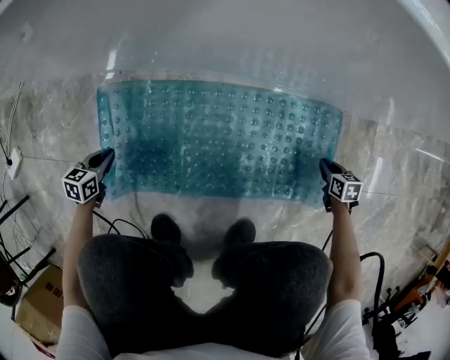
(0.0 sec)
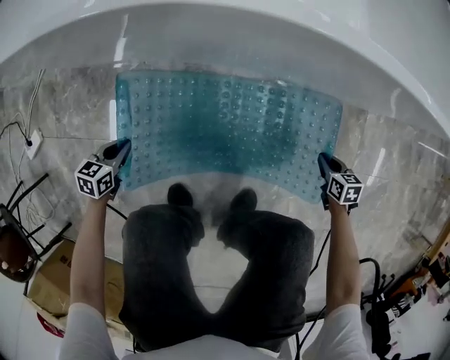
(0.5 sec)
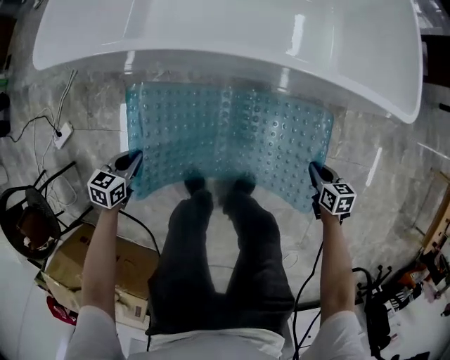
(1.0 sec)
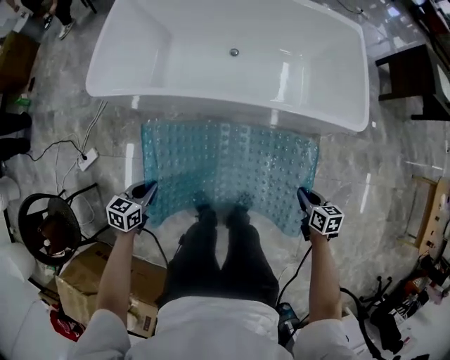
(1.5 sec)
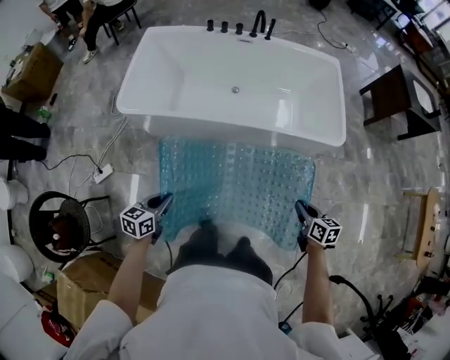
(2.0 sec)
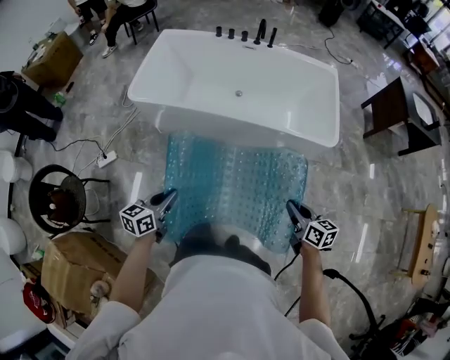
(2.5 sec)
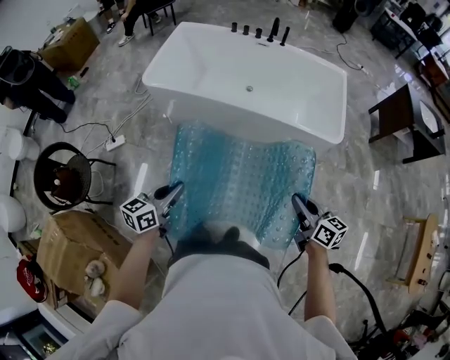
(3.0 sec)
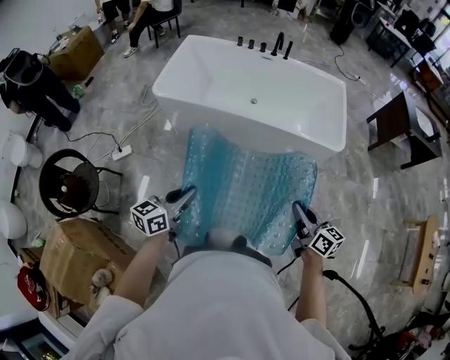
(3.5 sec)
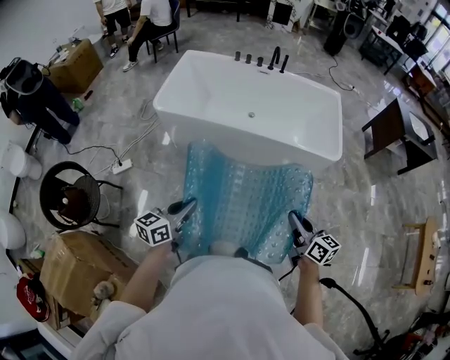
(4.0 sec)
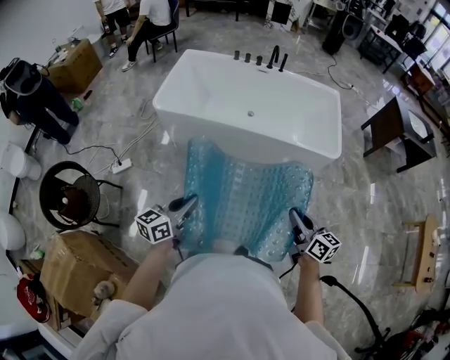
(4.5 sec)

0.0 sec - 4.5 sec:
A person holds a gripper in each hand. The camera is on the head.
0.0 sec - 2.0 sec: The two grippers go some 1 m upward. The right gripper rotates approximately 30 degrees.
2.0 sec - 4.5 sec: Both grippers travel together backward and upward, some 35 cm. The right gripper rotates roughly 30 degrees. The left gripper rotates approximately 20 degrees.

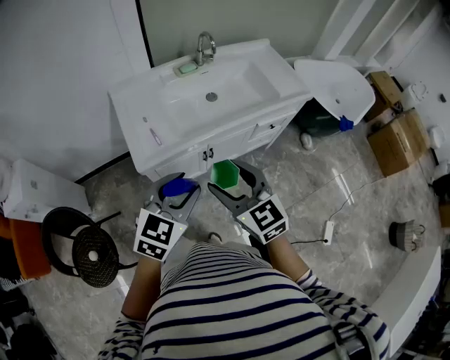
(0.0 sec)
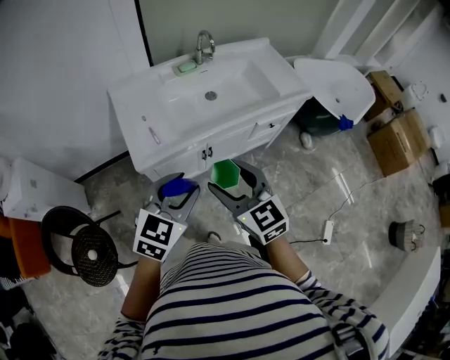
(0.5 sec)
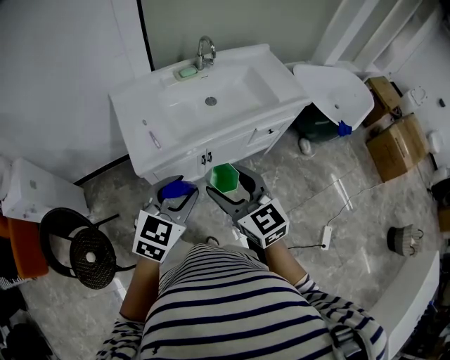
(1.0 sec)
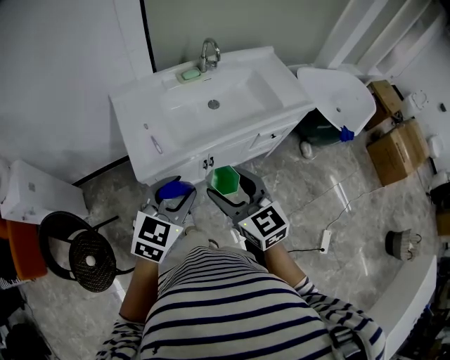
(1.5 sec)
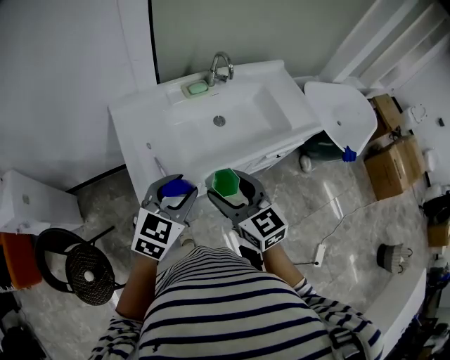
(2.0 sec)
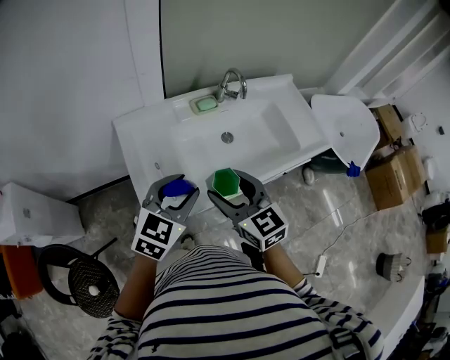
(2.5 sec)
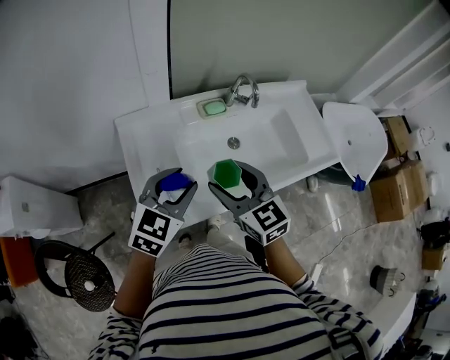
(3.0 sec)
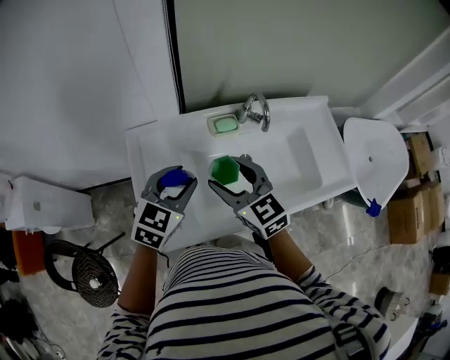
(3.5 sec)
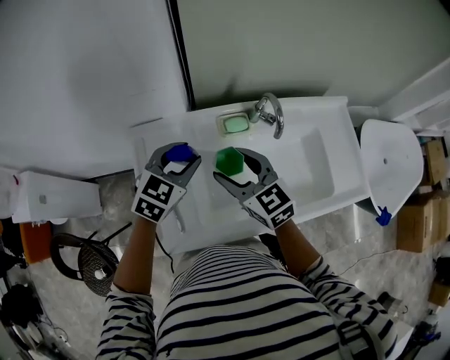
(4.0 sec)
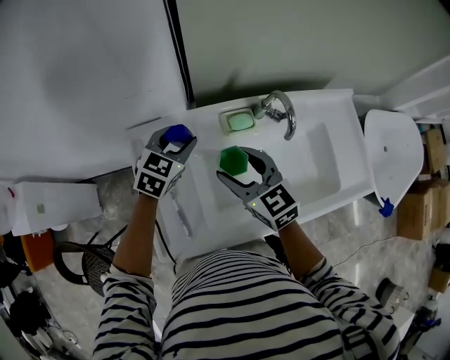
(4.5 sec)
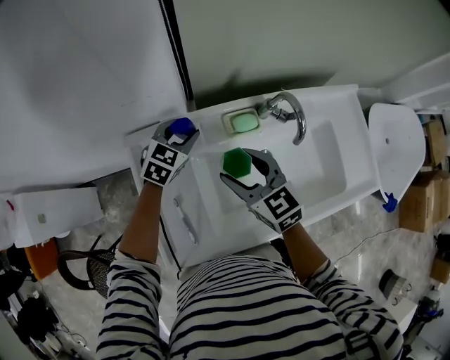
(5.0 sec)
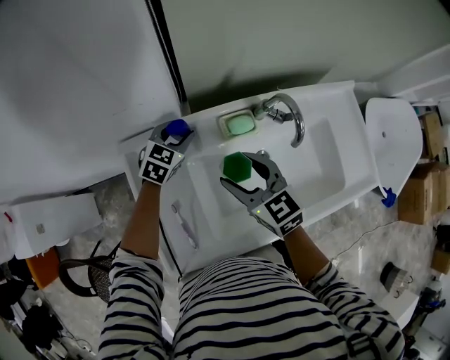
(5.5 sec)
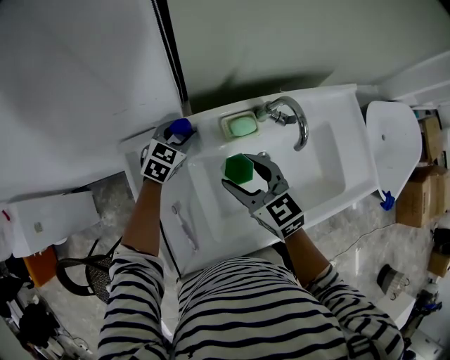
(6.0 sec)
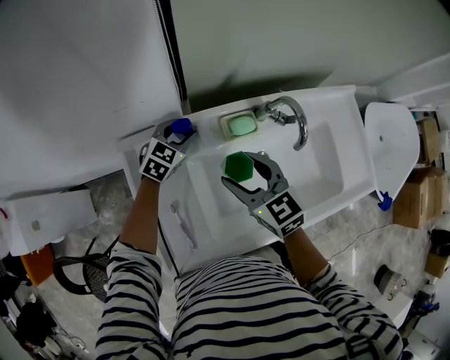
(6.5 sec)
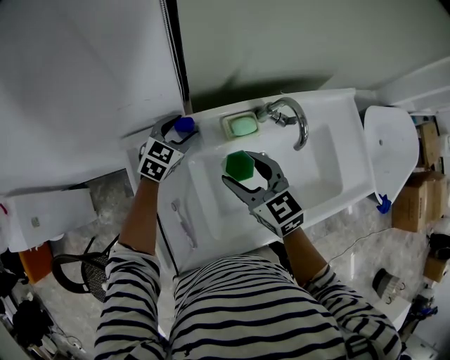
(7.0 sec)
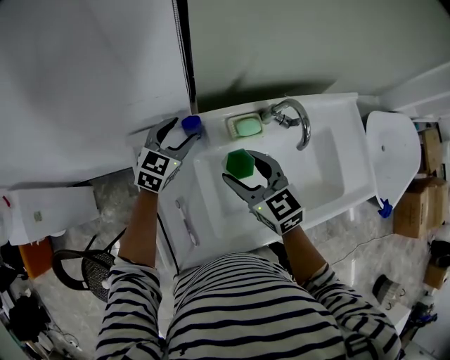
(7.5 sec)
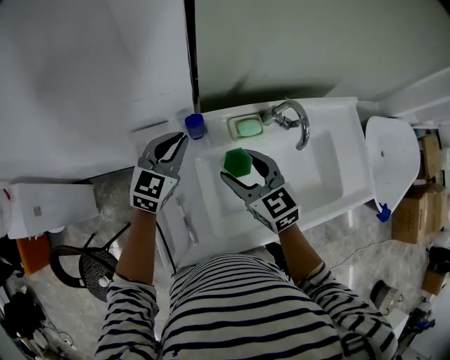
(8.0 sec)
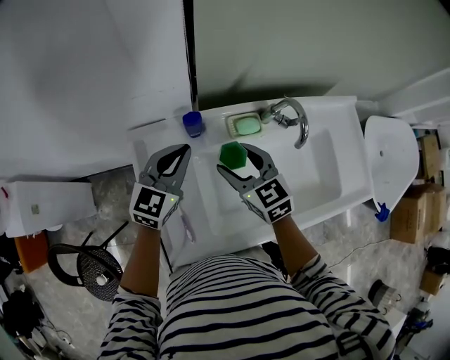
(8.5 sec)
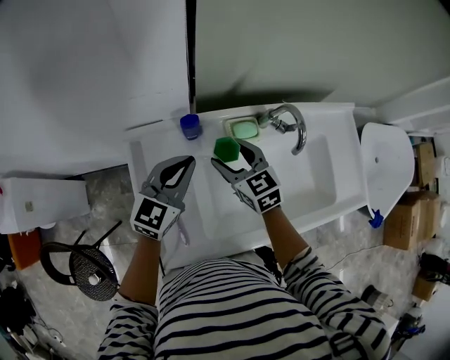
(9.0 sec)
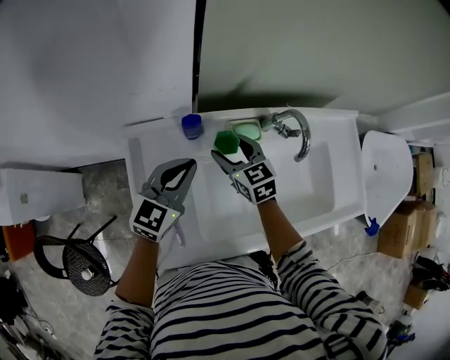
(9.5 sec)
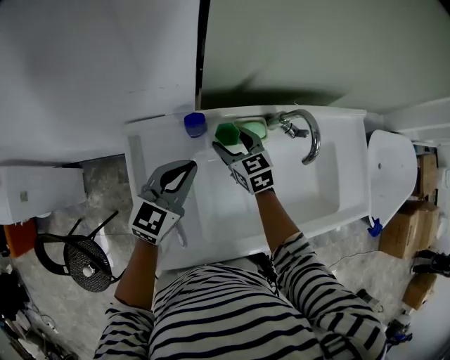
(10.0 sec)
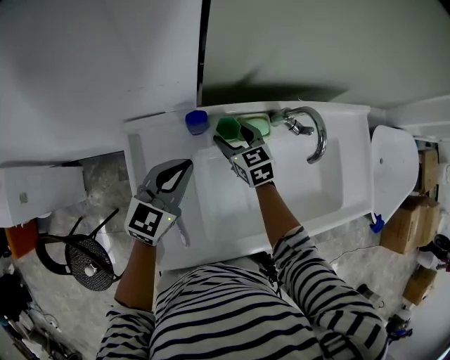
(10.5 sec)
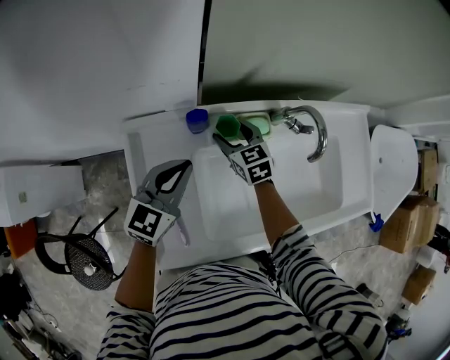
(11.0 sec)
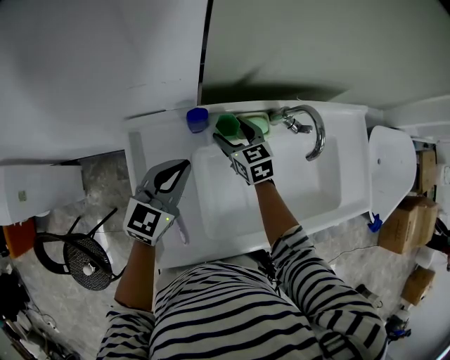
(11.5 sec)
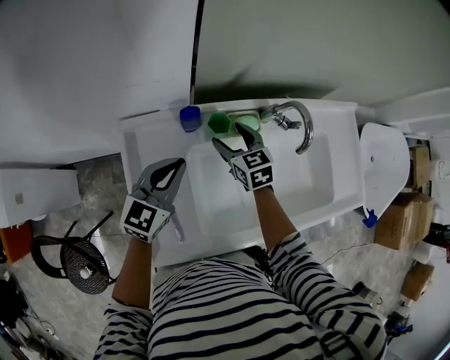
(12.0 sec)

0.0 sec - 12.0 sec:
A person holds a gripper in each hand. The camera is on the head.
0.0 sec - 2.0 sec: Both grippers travel together forward, some 15 cm.
2.0 sec - 4.0 sec: Both grippers move forward, some 35 cm.
4.0 sec - 6.0 sec: The right gripper shifts about 10 cm downward and forward. Meanwhile the left gripper heads downward and forward, covering some 25 cm.
6.0 sec - 8.0 sec: The left gripper shifts about 15 cm upward and backward, and closes its fingers.
8.0 sec - 10.0 sec: The right gripper travels downward and forward by some 15 cm. Meanwhile the left gripper heads backward, covering some 5 cm.
10.0 sec - 12.0 sec: The grippers stay close to where they were, moving slightly.

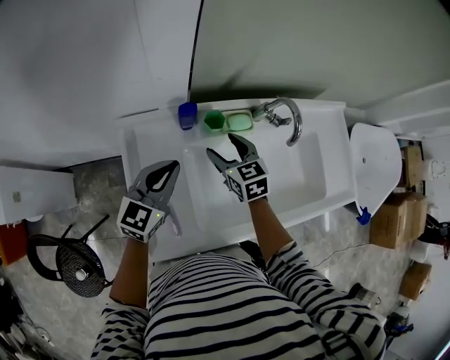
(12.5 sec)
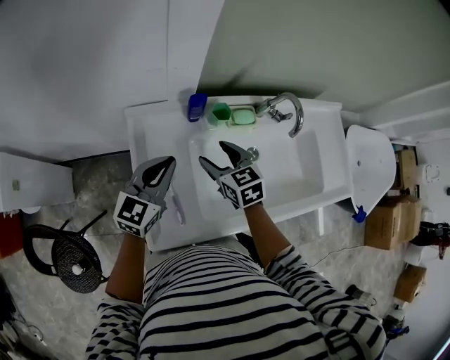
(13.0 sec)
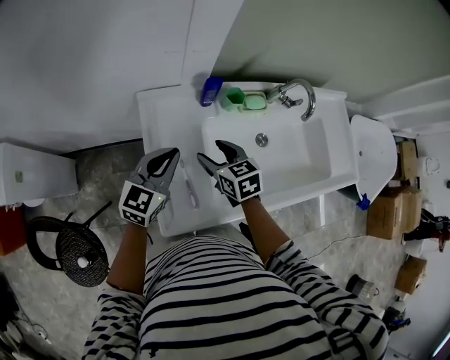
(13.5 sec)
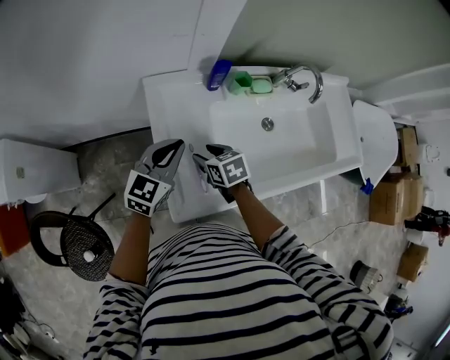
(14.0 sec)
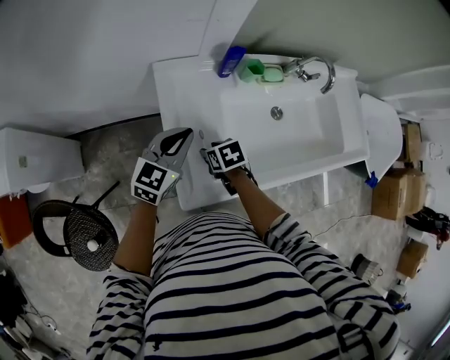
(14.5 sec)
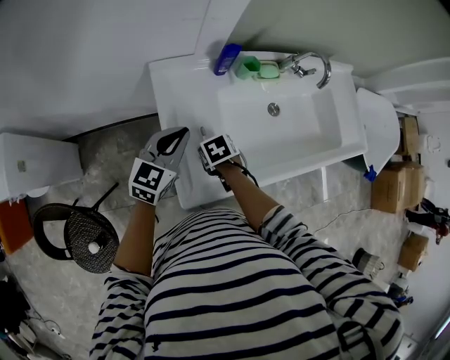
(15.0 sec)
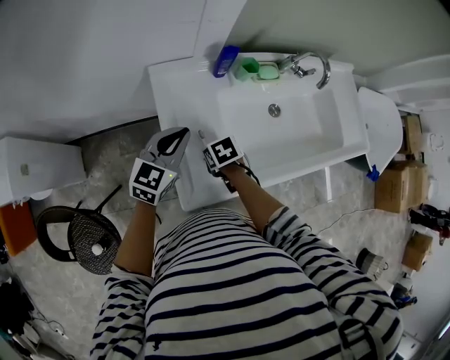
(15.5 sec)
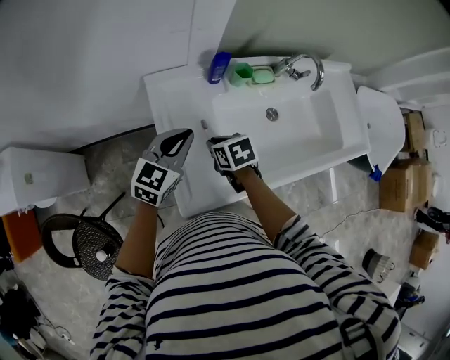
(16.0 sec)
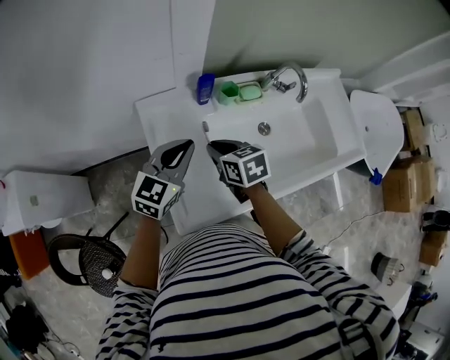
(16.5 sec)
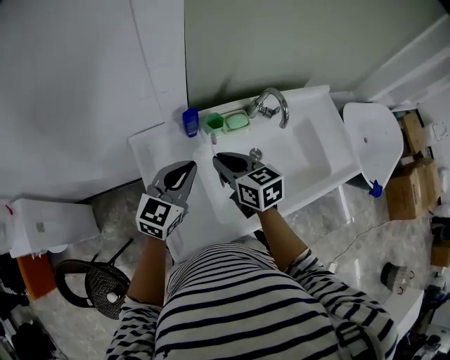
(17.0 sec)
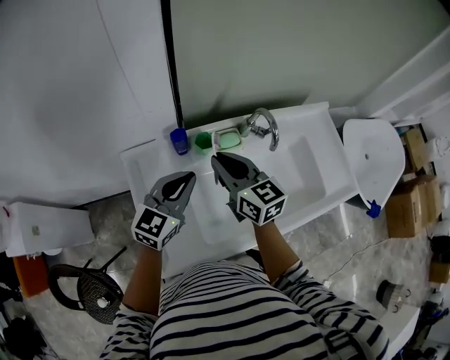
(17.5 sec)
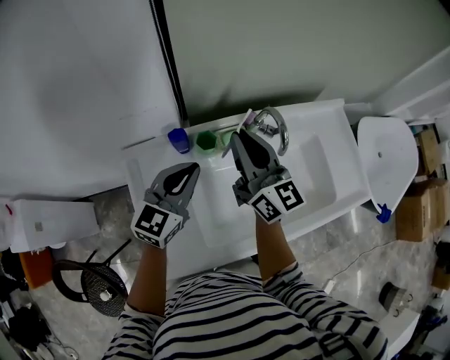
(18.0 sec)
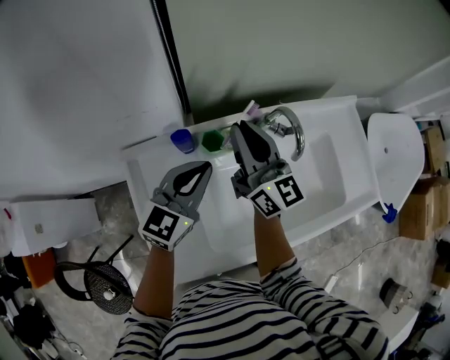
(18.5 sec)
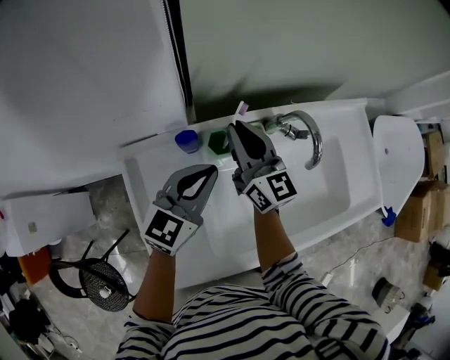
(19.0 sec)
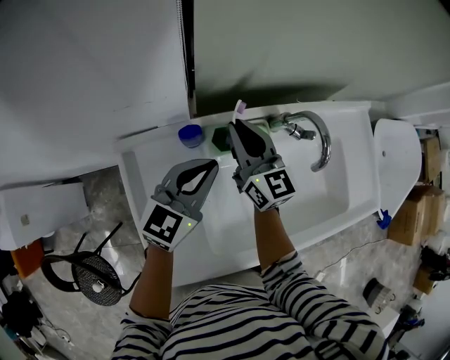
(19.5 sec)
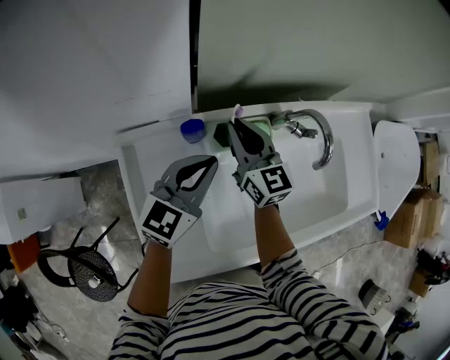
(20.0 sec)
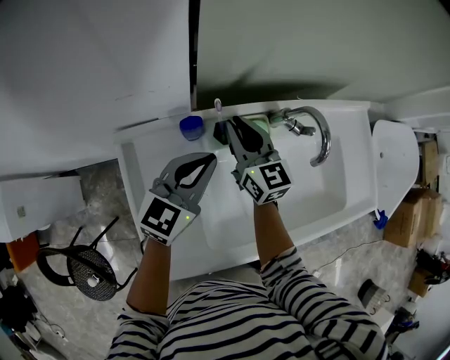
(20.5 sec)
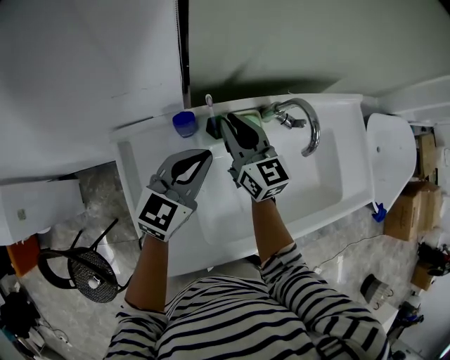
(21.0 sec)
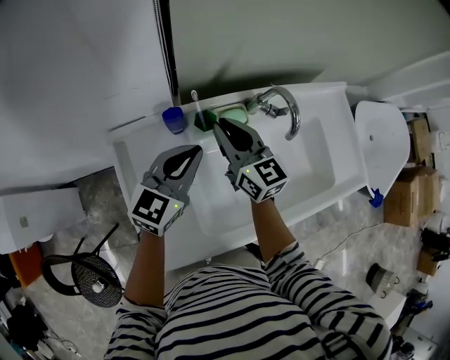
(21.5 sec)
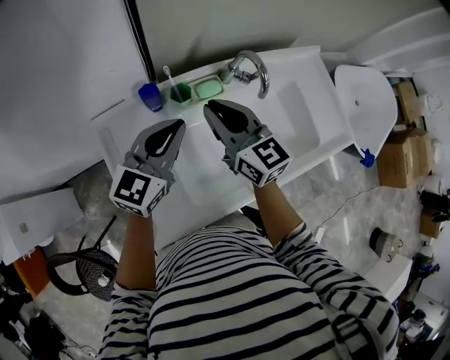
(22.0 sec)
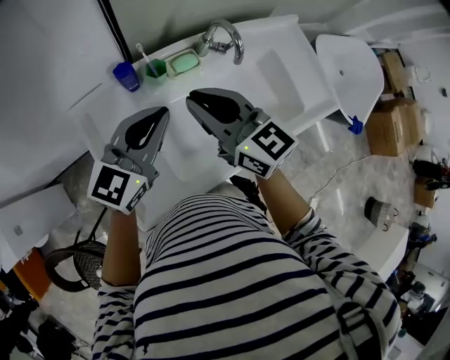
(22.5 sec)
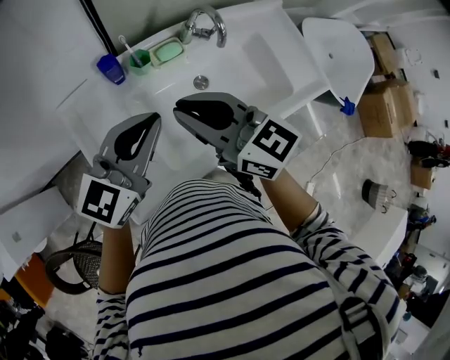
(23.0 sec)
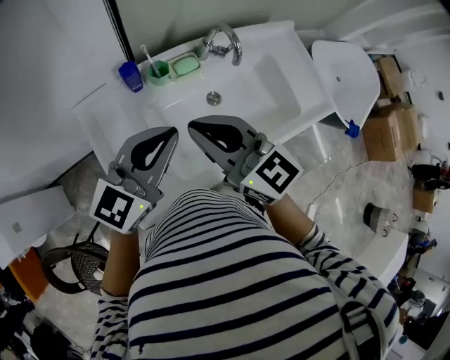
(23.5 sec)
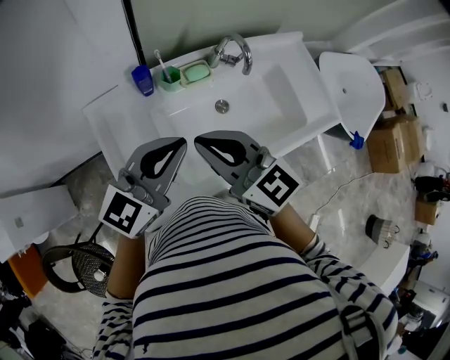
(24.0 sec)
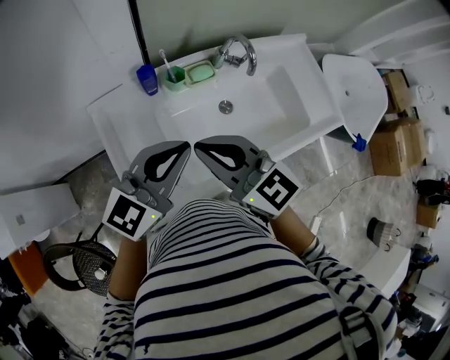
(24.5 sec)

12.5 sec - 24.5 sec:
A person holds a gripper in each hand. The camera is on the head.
12.5 sec - 14.5 sec: The left gripper heads to the left and backward, covering approximately 15 cm. Meanwhile the right gripper goes approximately 25 cm backward, to the left and downward, tilts its fingers roughly 30 degrees downward, and closes up.
14.5 sec - 16.5 sec: The left gripper ends up some 10 cm from where it was; the right gripper heads upward, covering roughly 15 cm, swivels roughly 20 degrees, and closes its fingers.
16.5 sec - 18.5 sec: The right gripper heads forward, upward and to the right, covering roughly 25 cm, and points its fingers approximately 50 degrees further upward. Meanwhile the left gripper shifts approximately 15 cm forward and to the right.
18.5 sec - 20.5 sec: The left gripper moves approximately 5 cm; the right gripper goes approximately 15 cm downward, and turns by some 20 degrees.
20.5 sec - 22.5 sec: The right gripper is displaced backward and upward by some 25 cm; the left gripper goes roughly 15 cm backward and upward.
22.5 sec - 24.5 sec: The two grippers go about 10 cm backward.
